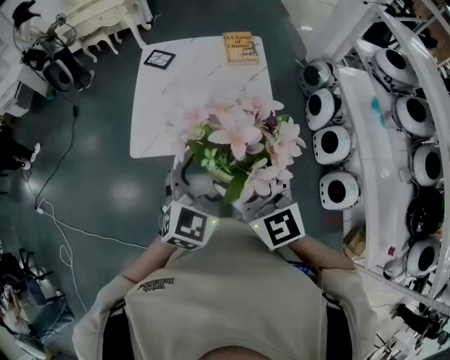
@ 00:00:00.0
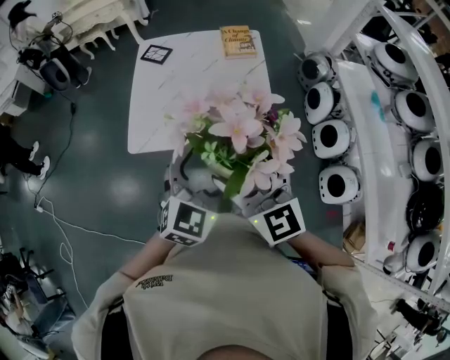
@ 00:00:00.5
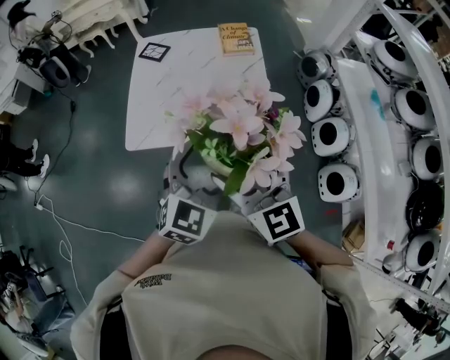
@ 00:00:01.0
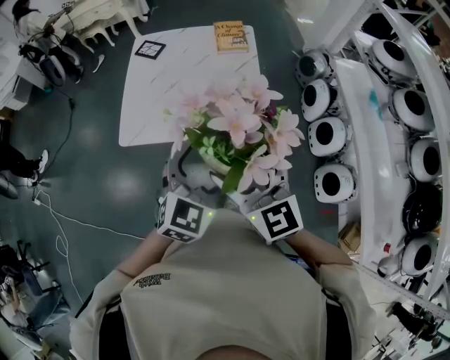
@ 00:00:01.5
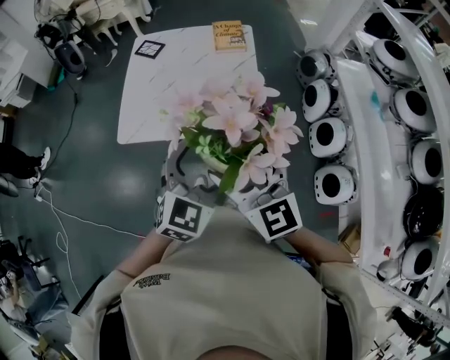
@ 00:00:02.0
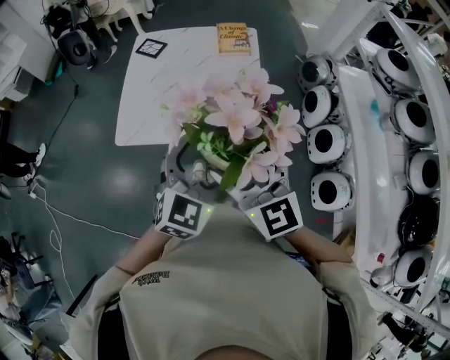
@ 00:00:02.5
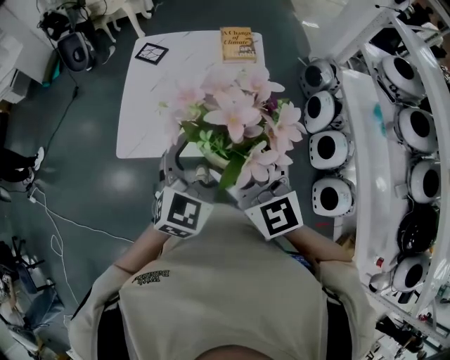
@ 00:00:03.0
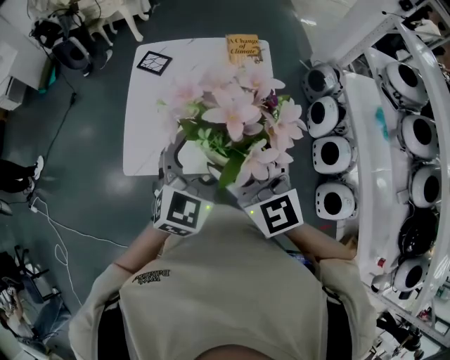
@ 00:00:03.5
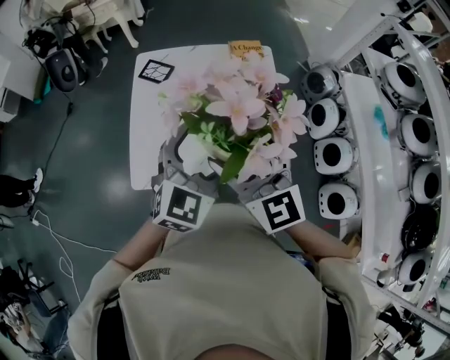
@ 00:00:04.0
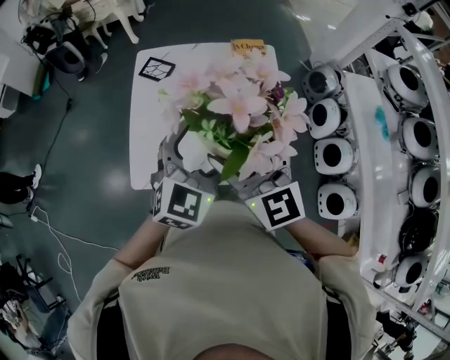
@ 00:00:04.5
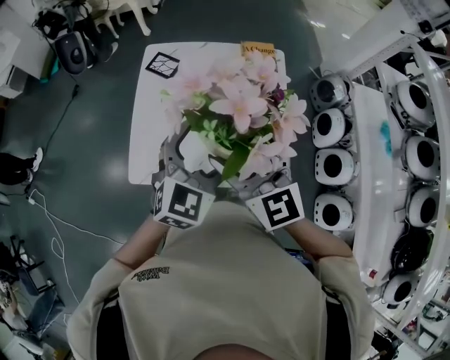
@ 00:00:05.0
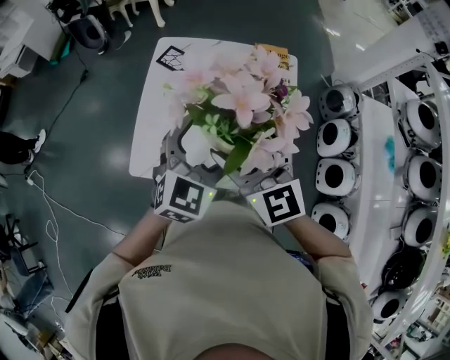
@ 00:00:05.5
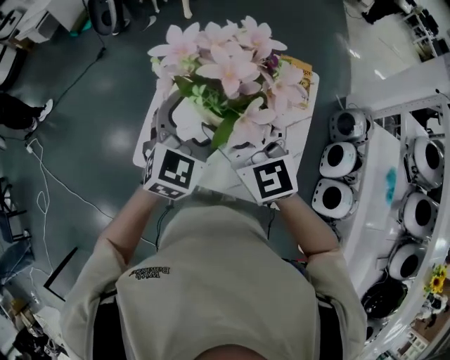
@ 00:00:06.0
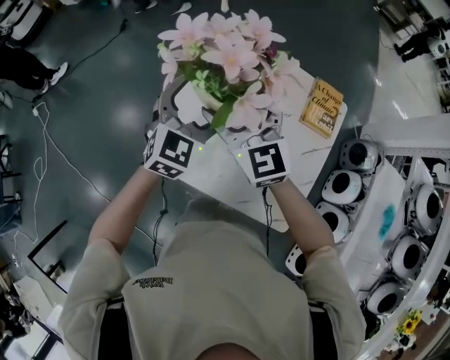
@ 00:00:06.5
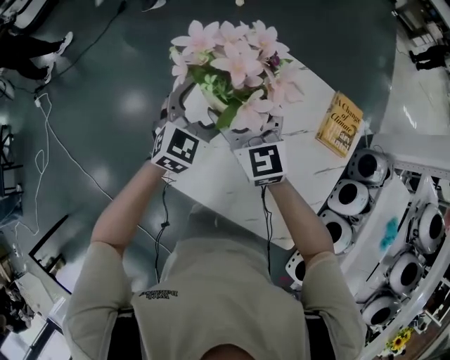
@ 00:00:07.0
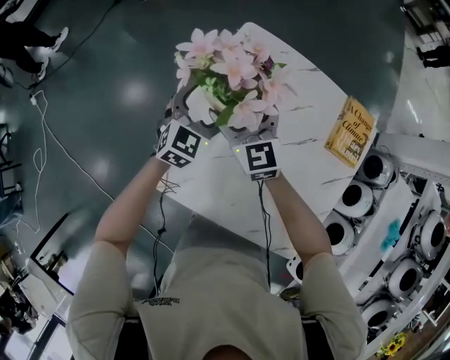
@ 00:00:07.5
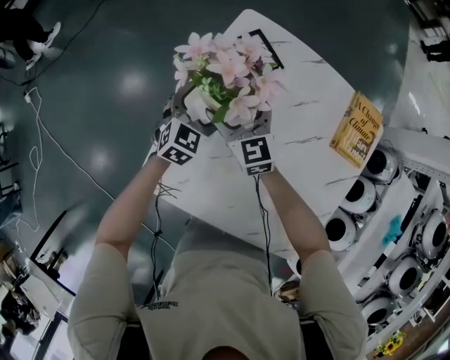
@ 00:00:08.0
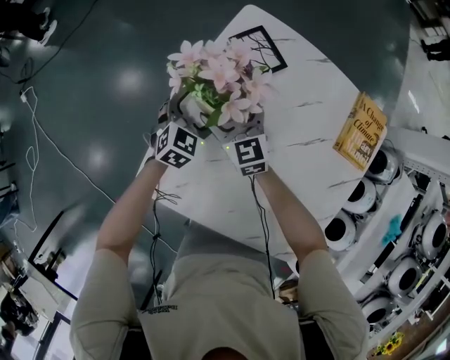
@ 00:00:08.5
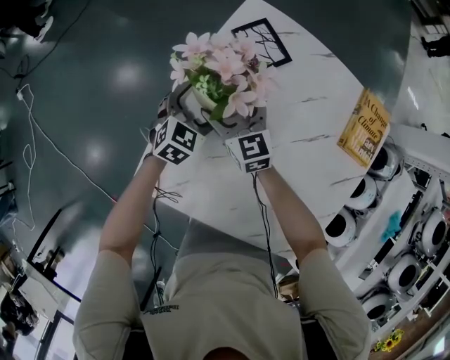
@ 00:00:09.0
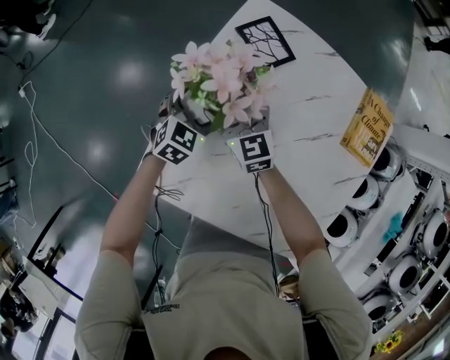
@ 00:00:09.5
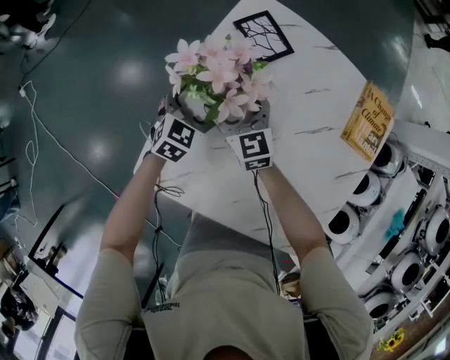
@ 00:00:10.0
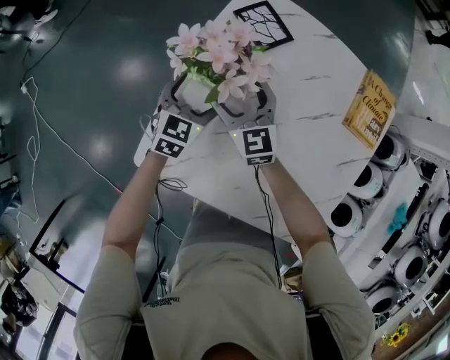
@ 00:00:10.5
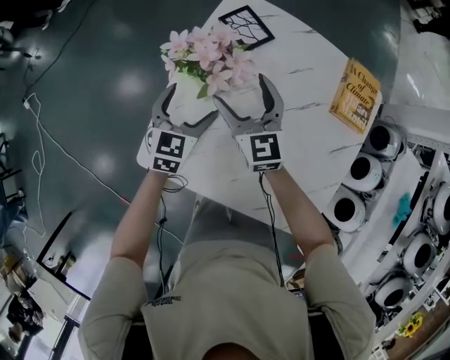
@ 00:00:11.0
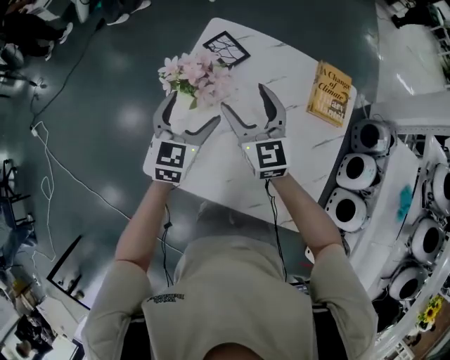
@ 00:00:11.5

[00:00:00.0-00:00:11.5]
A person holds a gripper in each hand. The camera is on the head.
00:00:00.0 to 00:00:02.0: The grippers both shift to the right by about 10 cm.
00:00:02.0 to 00:00:04.0: Both grippers travel together forward and to the left, about 25 cm.
00:00:04.0 to 00:00:06.0: The two grippers go about 15 cm forward and to the left. The left gripper turns by approximately 20 degrees.
00:00:06.0 to 00:00:07.5: Both grippers travel together downward, forward and to the left, roughly 35 cm.
00:00:07.5 to 00:00:09.5: Both grippers travel together downward, roughly 15 cm.
00:00:09.5 to 00:00:11.5: The right gripper goes some 25 cm upward and to the right; the left gripper goes approximately 20 cm upward, and changes its angle by approximately 20 degrees.

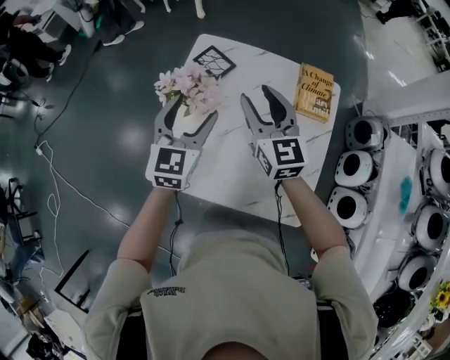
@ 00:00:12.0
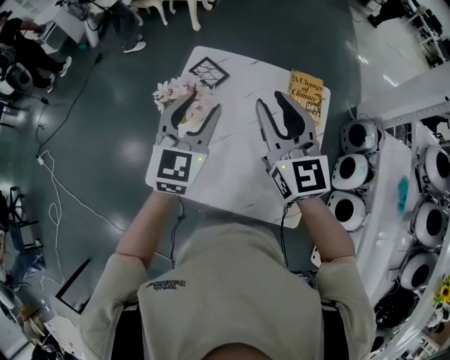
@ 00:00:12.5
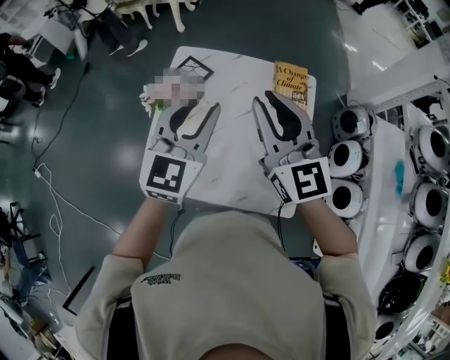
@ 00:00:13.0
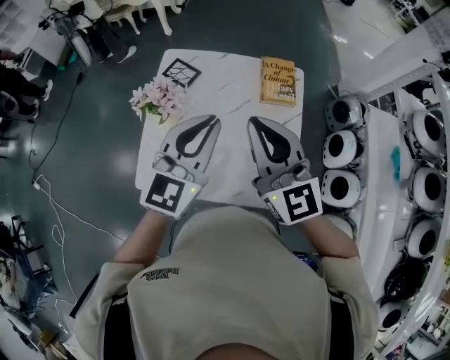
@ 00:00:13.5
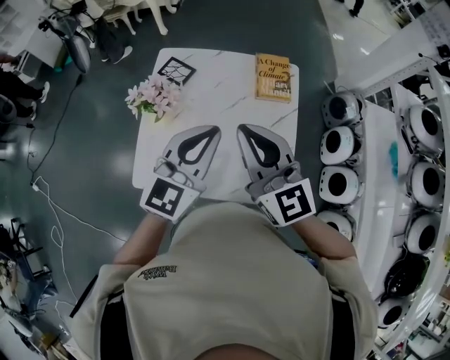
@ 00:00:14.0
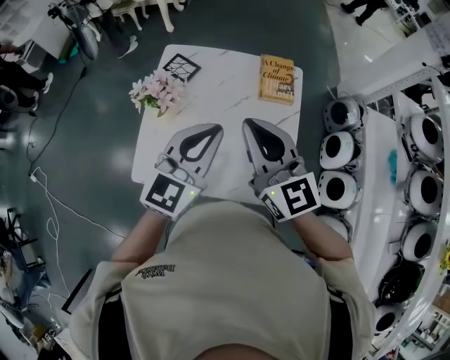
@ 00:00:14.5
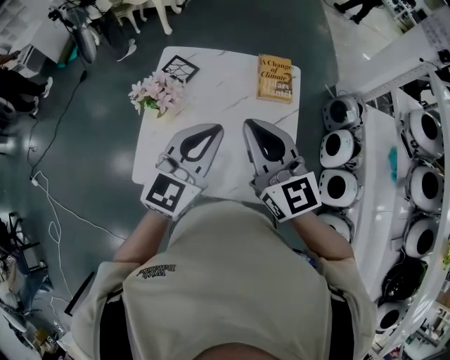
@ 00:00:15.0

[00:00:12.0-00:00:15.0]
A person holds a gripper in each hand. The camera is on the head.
00:00:12.0 to 00:00:13.5: The right gripper travels backward, upward and to the right by some 20 cm, and closes its fingers, while the left gripper moves to the right, upward and backward, about 20 cm, changes its angle by roughly 20 degrees, and closes up.
00:00:13.5 to 00:00:15.0: The grippers make only small movements.

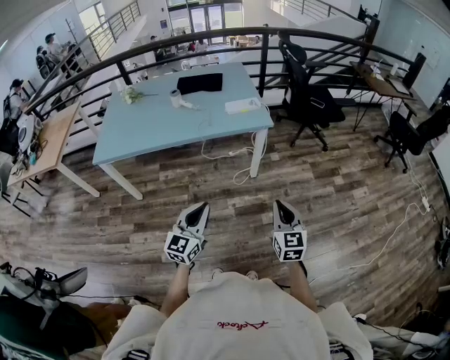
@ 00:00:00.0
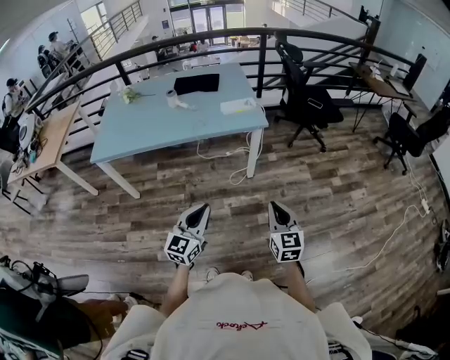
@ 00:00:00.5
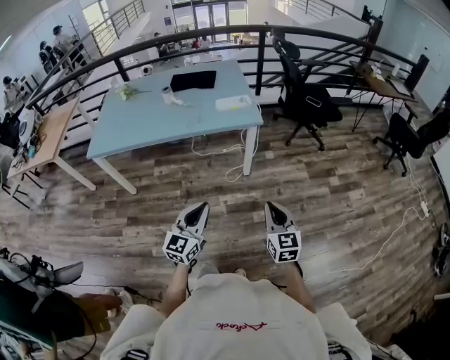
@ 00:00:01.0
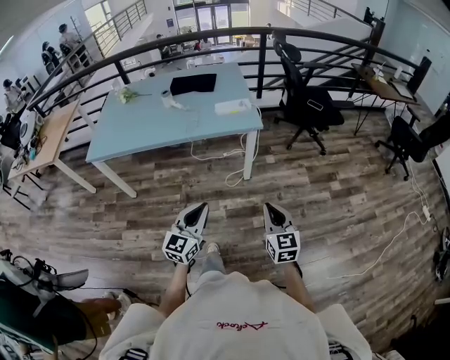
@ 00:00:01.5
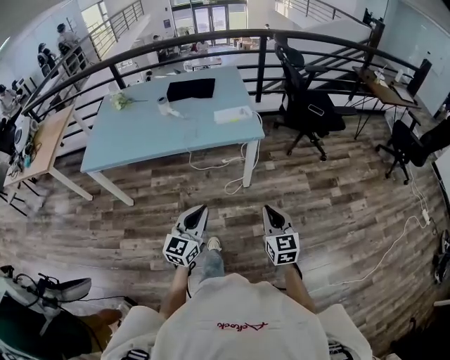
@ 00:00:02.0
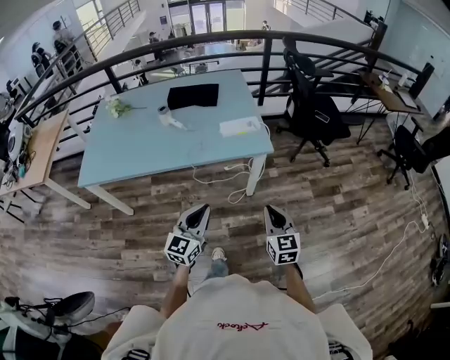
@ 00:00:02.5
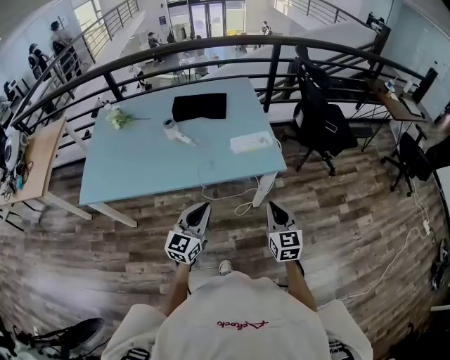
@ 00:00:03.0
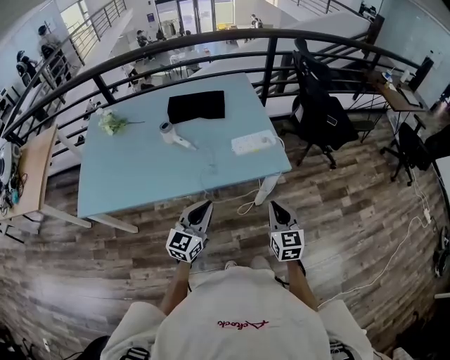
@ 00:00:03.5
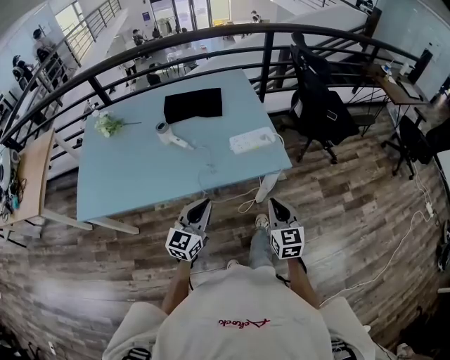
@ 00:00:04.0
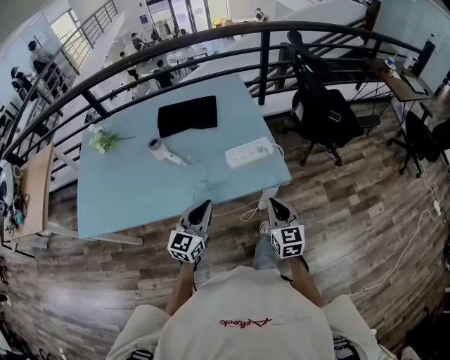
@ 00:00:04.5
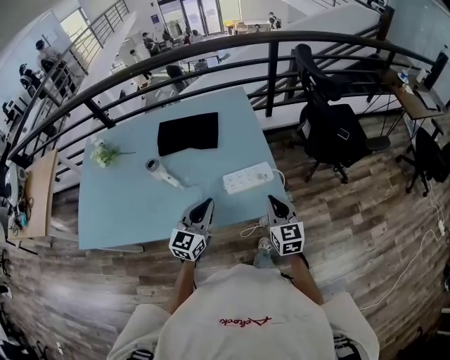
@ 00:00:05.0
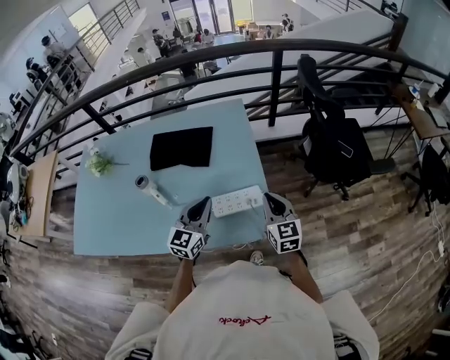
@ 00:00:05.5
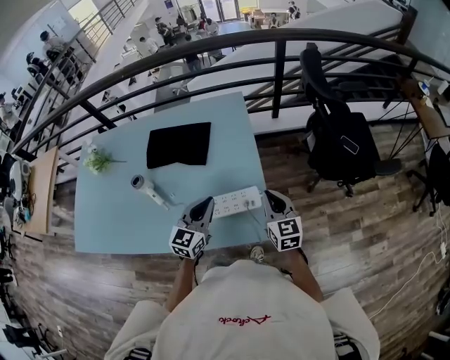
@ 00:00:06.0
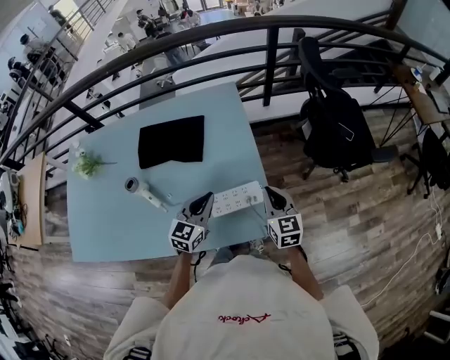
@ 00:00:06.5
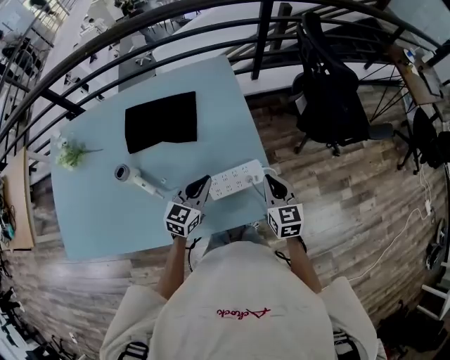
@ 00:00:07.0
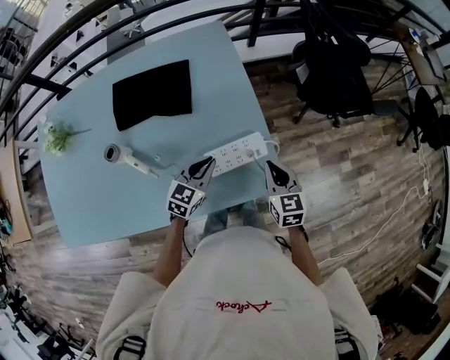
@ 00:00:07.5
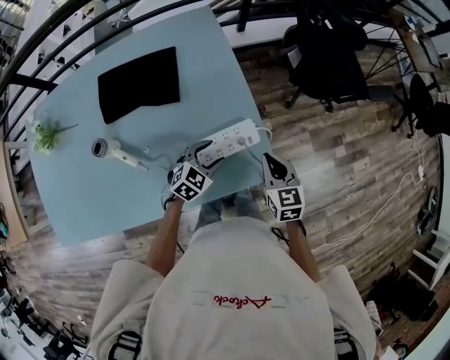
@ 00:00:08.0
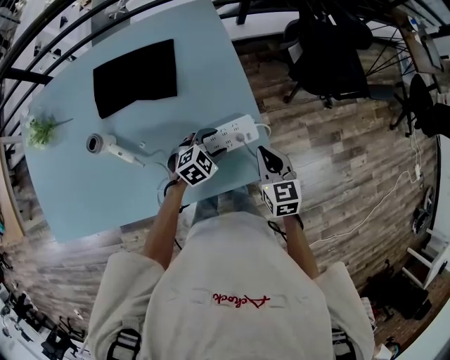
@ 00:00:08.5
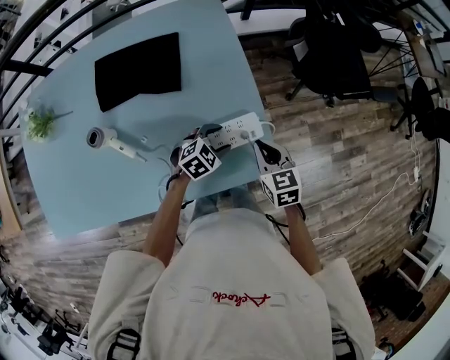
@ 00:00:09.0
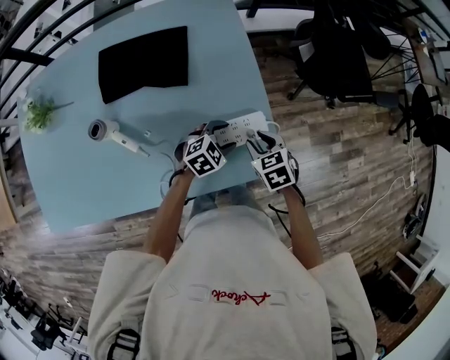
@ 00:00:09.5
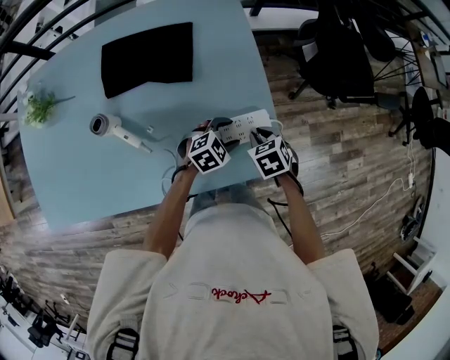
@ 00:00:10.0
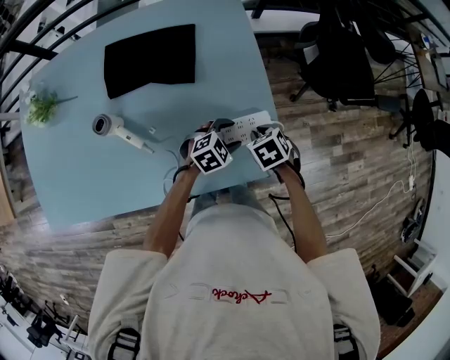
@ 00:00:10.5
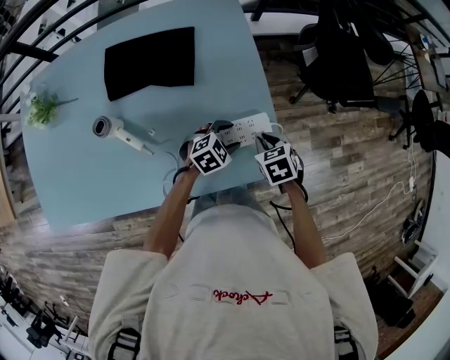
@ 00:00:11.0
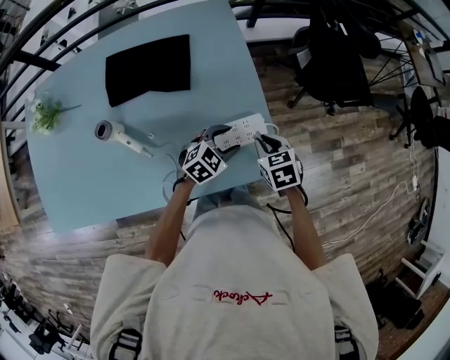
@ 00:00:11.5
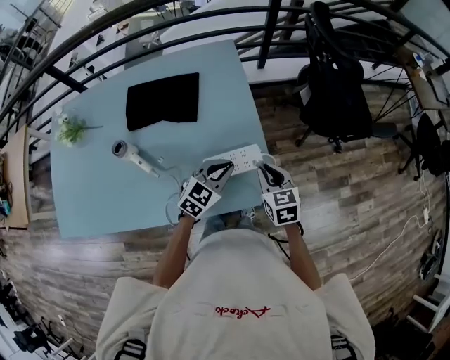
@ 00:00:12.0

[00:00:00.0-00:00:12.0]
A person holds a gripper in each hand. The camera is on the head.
00:00:00.0 to 00:00:02.0: The left gripper shifts approximately 10 cm forward and to the right. The right gripper moves forward, roughly 10 cm.
00:00:02.0 to 00:00:04.0: Both grippers travel together forward and to the left, some 35 cm.
00:00:04.0 to 00:00:06.0: Both grippers travel together forward, about 35 cm.
00:00:06.0 to 00:00:08.0: The left gripper moves downward, approximately 20 cm, swivels about 50 degrees, and opens. Meanwhile the right gripper goes some 10 cm downward and backward, and turns by about 20 degrees.
00:00:08.0 to 00:00:10.0: The right gripper travels downward and to the left by about 10 cm, and points its fingers some 30 degrees further downward.
00:00:10.0 to 00:00:12.0: Both grippers travel together upward, roughly 10 cm. The left gripper changes its angle by about 30 degrees, and closes up; the right gripper swivels roughly 30 degrees.
